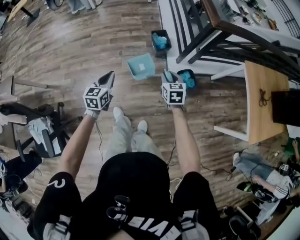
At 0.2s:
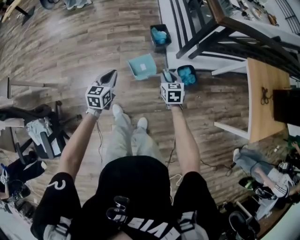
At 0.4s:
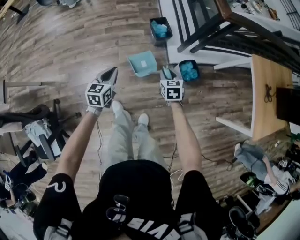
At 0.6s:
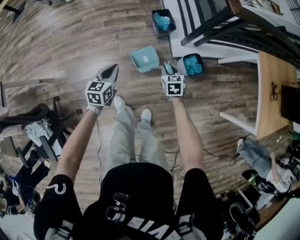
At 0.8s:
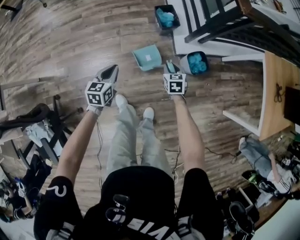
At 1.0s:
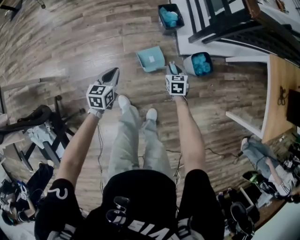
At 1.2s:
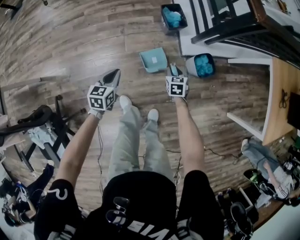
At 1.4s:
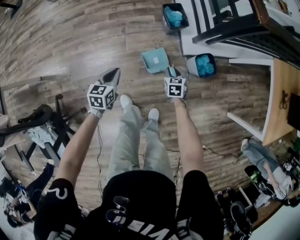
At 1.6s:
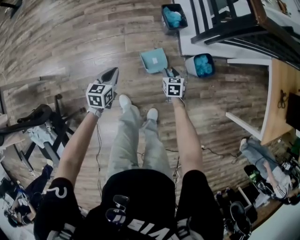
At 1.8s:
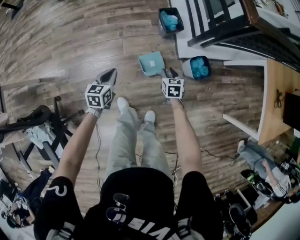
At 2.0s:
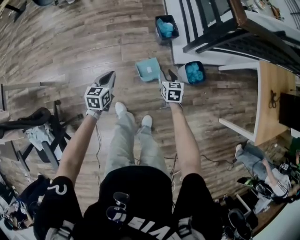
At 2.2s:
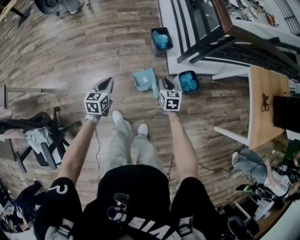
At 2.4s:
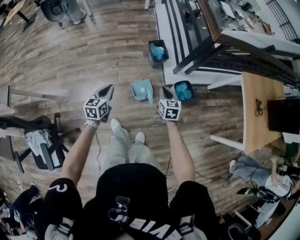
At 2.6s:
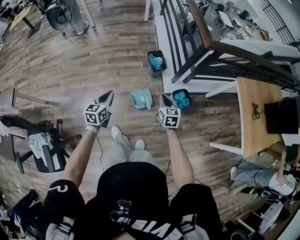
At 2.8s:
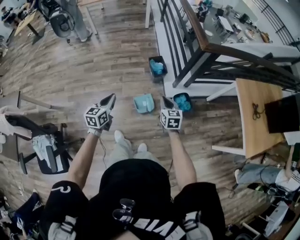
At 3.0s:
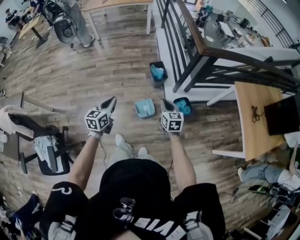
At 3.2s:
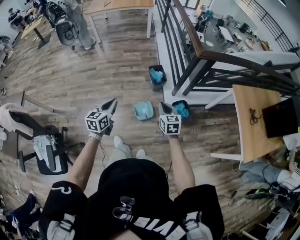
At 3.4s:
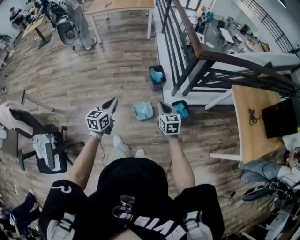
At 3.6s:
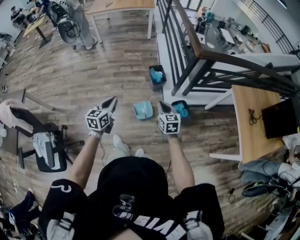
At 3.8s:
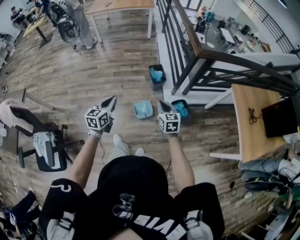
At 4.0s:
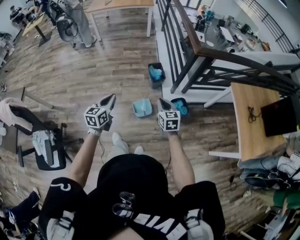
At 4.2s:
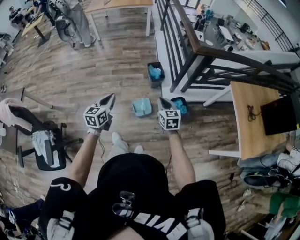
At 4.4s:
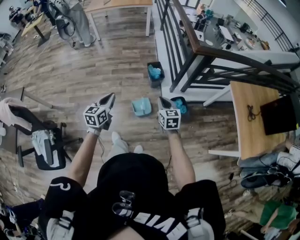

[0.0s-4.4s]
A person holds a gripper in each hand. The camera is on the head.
0.0s to 1.4s: The grippers both shift downward by approximately 25 cm.
1.4s to 3.0s: The grippers both shift upward by approximately 30 cm. The right gripper rotates some 30 degrees, and closes.
3.0s to 4.4s: The right gripper changes place by approximately 5 cm. The left gripper shifts by some 5 cm.

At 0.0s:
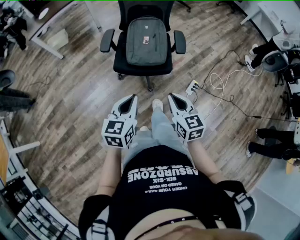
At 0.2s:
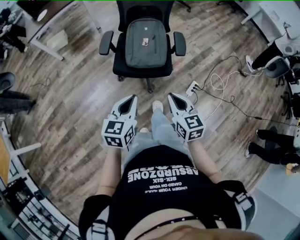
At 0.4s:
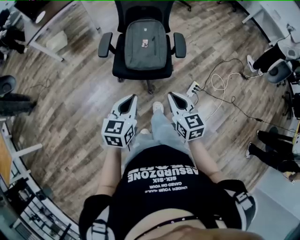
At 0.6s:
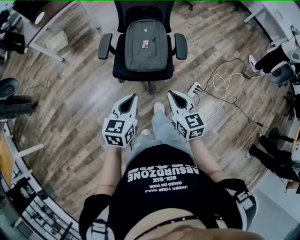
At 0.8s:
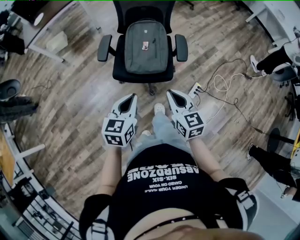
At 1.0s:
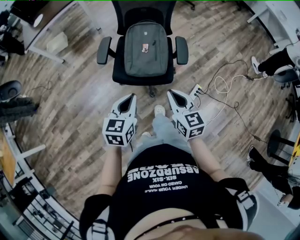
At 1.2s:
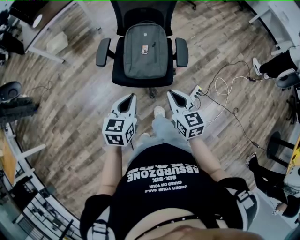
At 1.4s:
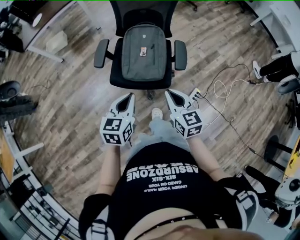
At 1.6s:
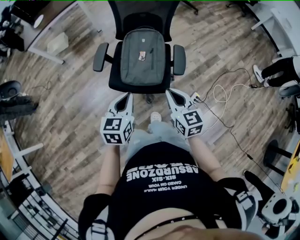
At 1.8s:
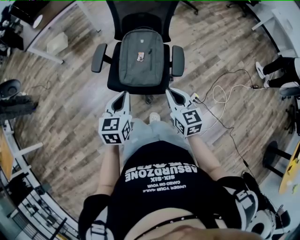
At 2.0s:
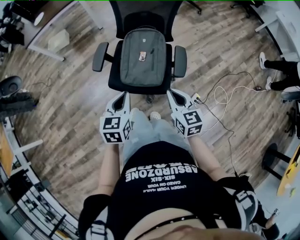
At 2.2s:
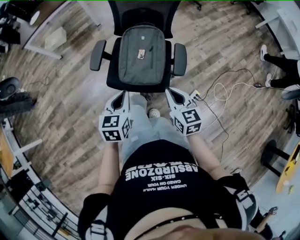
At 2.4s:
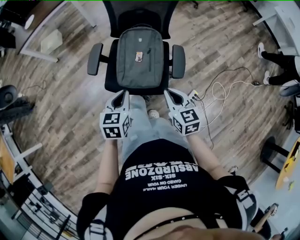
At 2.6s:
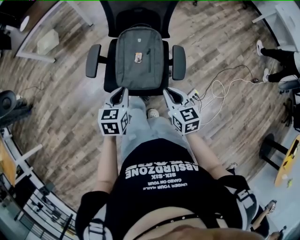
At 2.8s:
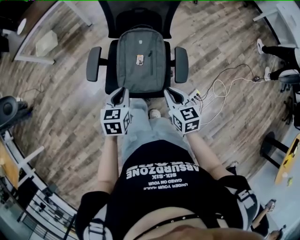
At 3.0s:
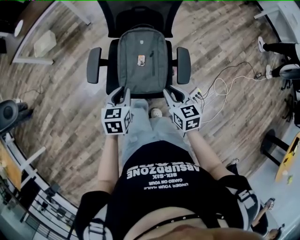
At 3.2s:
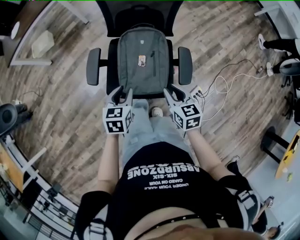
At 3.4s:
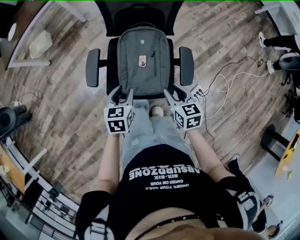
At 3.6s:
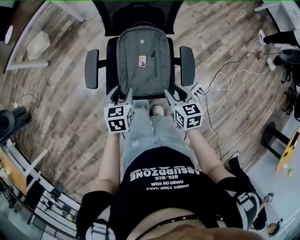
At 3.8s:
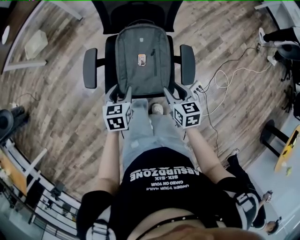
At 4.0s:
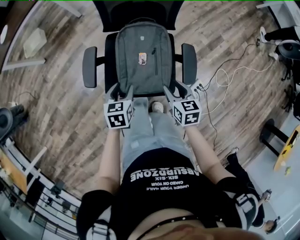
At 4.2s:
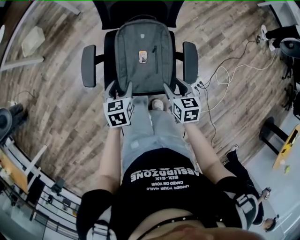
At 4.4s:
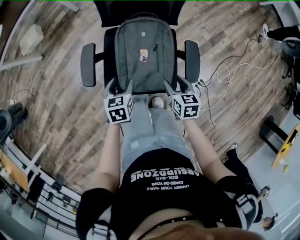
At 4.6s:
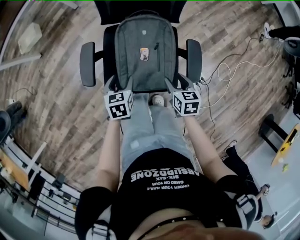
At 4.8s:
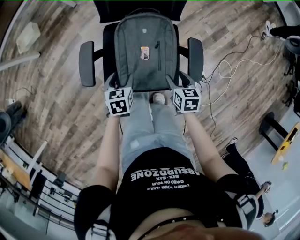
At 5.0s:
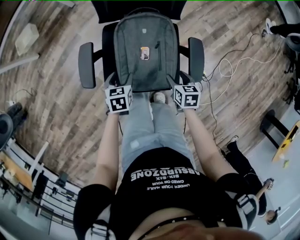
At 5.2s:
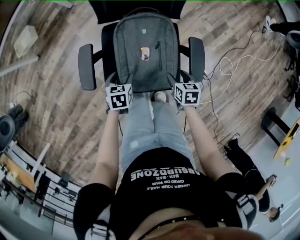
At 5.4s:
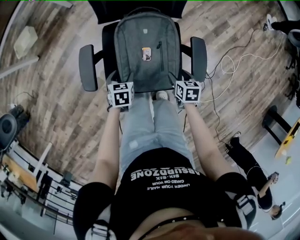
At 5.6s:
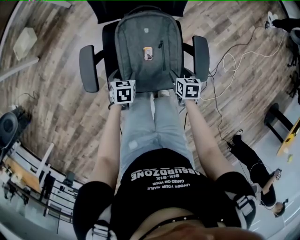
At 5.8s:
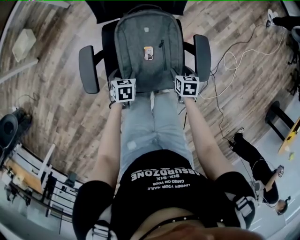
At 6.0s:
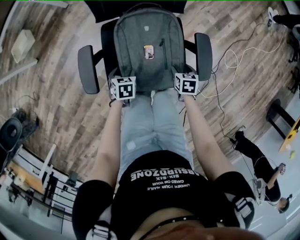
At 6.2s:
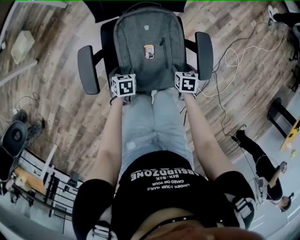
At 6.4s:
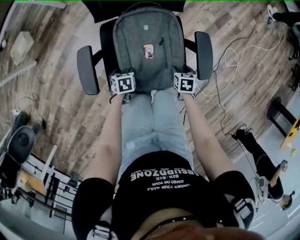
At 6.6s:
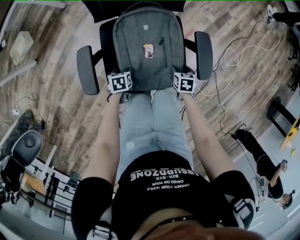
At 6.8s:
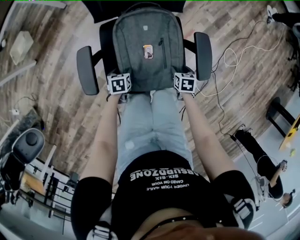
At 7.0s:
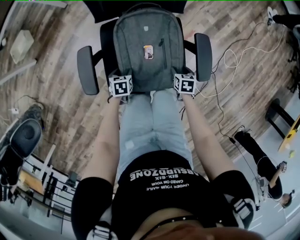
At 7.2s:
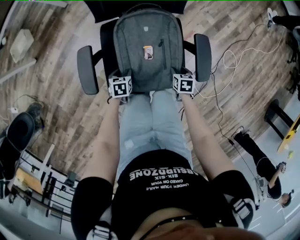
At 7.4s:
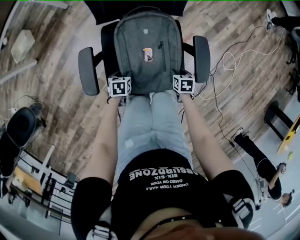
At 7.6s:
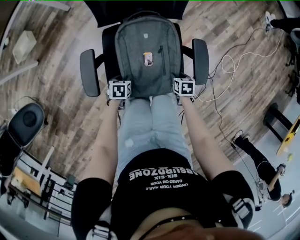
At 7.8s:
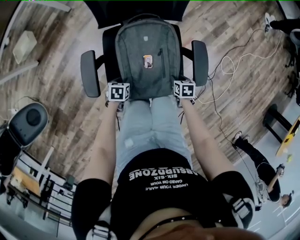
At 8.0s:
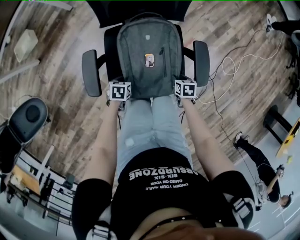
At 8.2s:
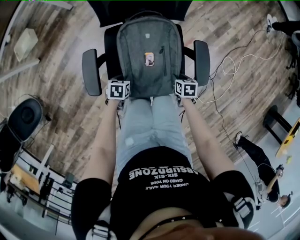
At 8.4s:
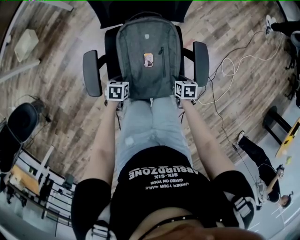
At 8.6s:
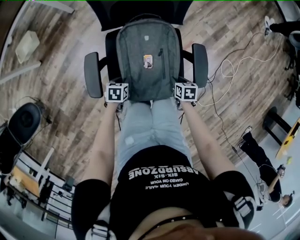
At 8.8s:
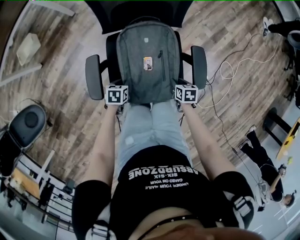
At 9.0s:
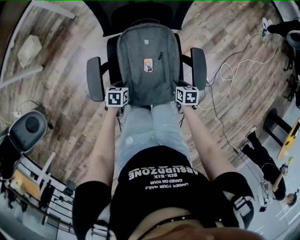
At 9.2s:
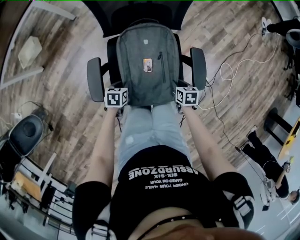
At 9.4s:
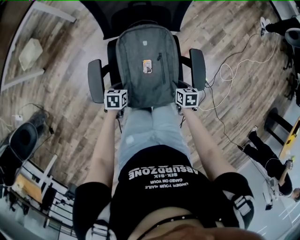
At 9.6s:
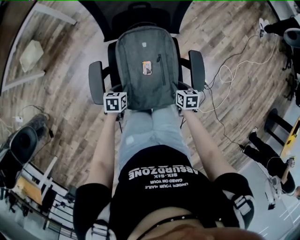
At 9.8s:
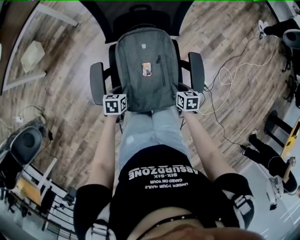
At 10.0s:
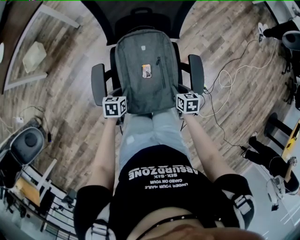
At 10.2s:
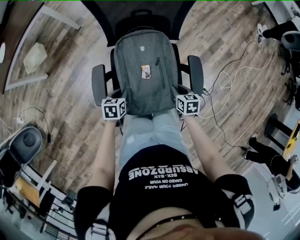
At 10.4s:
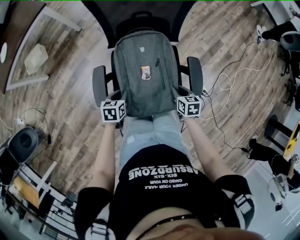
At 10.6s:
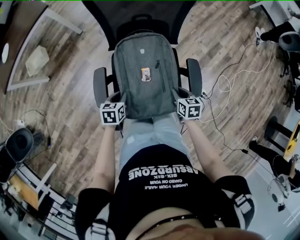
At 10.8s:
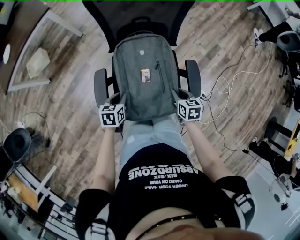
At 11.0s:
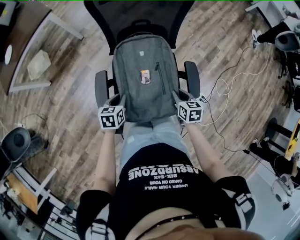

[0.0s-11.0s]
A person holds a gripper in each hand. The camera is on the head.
0.0s to 1.6s: Both grippers travel together forward, approximately 20 cm.
1.6s to 3.2s: The grippers both shift forward and downward by roughly 20 cm. The left gripper opens.
3.2s to 4.8s: The two grippers go approximately 20 cm downward and forward. The right gripper swivels some 20 degrees, and opens up. The left gripper opens.
4.8s to 6.2s: The two grippers go about 15 cm downward.
6.2s to 7.8s: The left gripper closes its fingers. Meanwhile the right gripper closes.
7.8s to 9.4s: Both grippers move upward, about 10 cm.
9.4s to 11.0s: Both grippers travel together upward, approximately 15 cm.

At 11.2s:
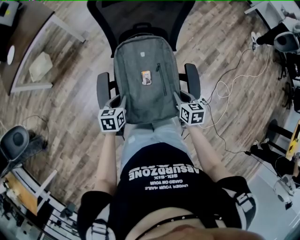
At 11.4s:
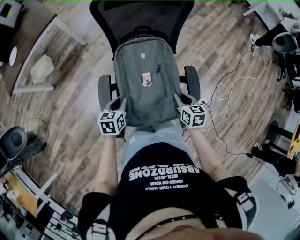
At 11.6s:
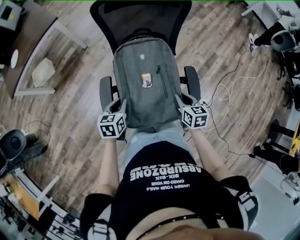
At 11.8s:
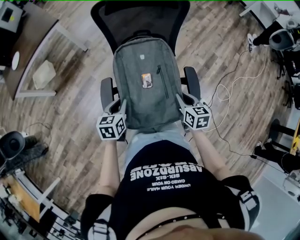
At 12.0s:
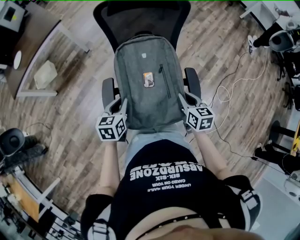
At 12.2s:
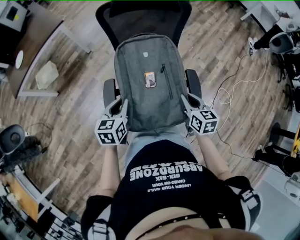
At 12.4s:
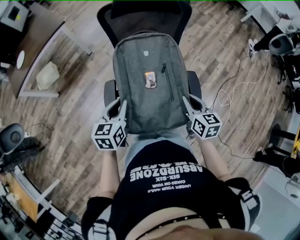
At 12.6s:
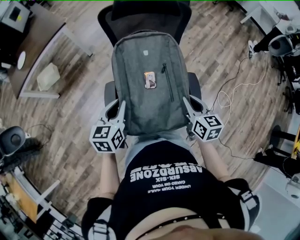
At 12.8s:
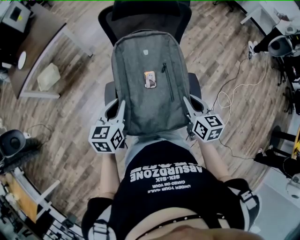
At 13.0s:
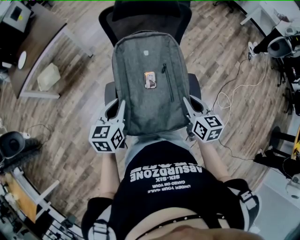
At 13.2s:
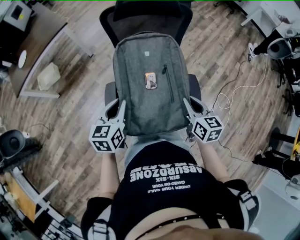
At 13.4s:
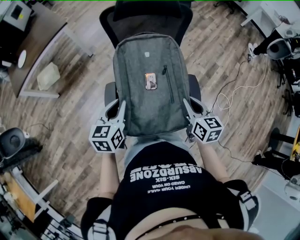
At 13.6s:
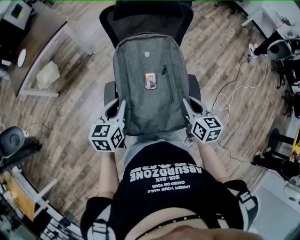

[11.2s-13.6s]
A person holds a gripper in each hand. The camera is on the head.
11.2s to 12.4s: The two grippers go about 15 cm upward.
12.4s to 13.6s: There are only small adjustments of the grippers.

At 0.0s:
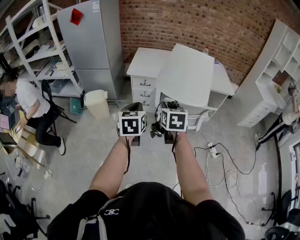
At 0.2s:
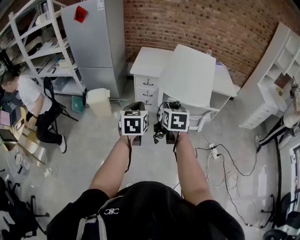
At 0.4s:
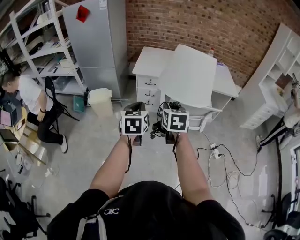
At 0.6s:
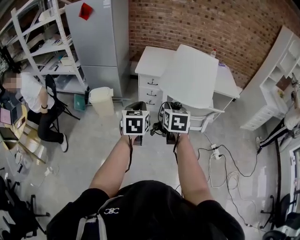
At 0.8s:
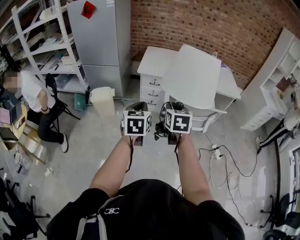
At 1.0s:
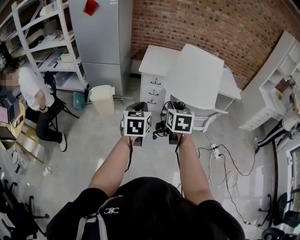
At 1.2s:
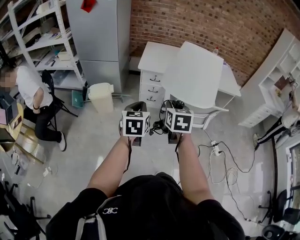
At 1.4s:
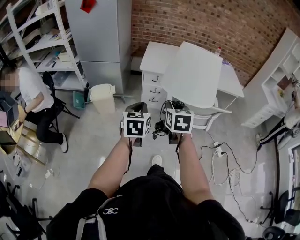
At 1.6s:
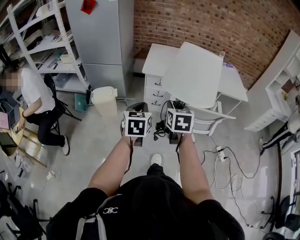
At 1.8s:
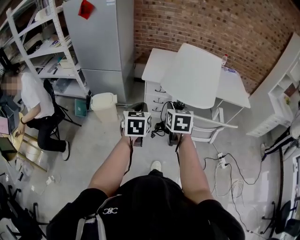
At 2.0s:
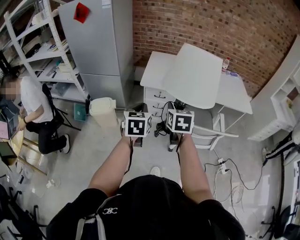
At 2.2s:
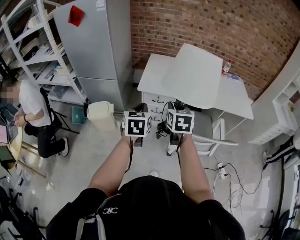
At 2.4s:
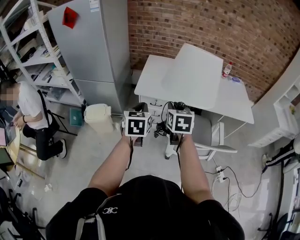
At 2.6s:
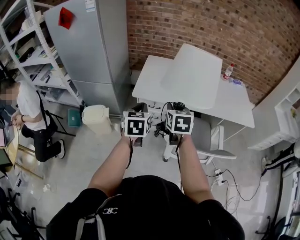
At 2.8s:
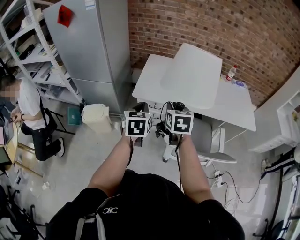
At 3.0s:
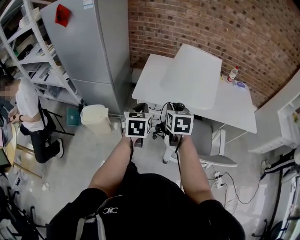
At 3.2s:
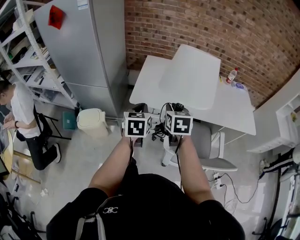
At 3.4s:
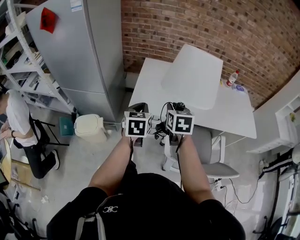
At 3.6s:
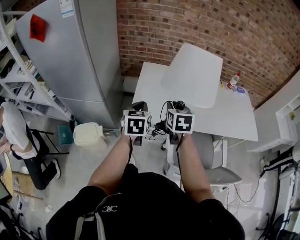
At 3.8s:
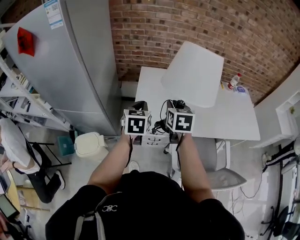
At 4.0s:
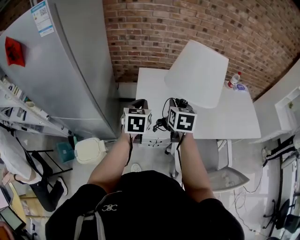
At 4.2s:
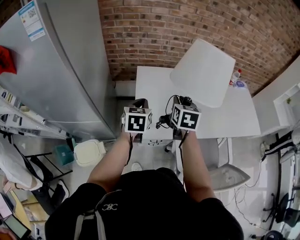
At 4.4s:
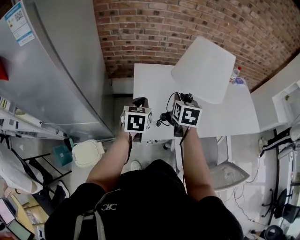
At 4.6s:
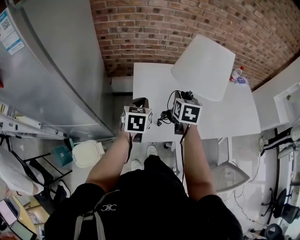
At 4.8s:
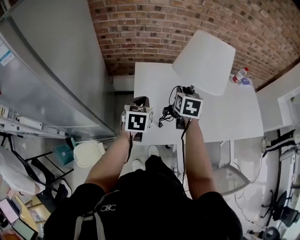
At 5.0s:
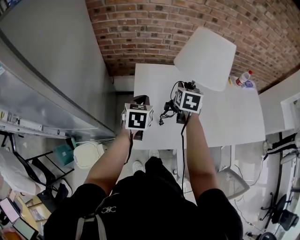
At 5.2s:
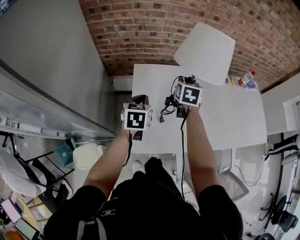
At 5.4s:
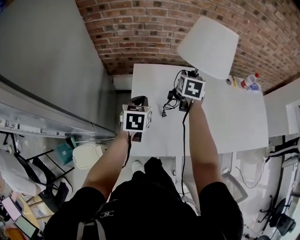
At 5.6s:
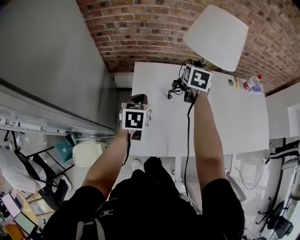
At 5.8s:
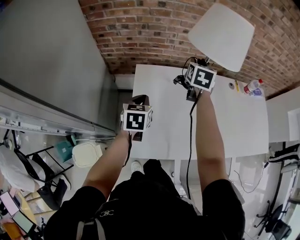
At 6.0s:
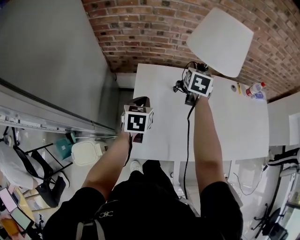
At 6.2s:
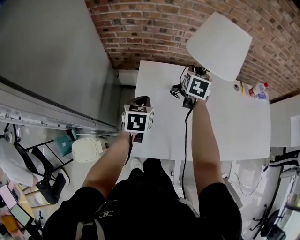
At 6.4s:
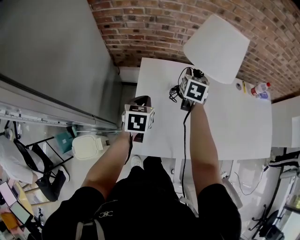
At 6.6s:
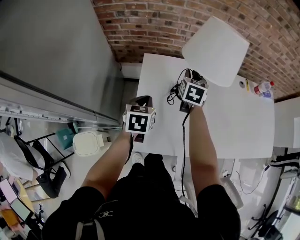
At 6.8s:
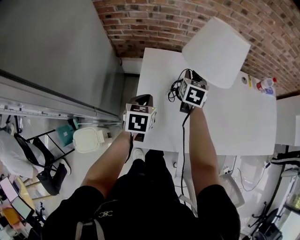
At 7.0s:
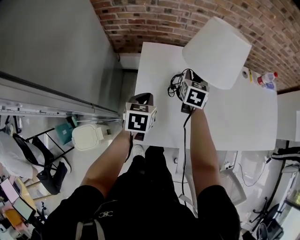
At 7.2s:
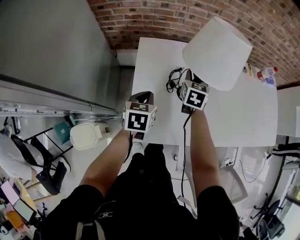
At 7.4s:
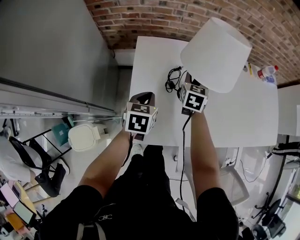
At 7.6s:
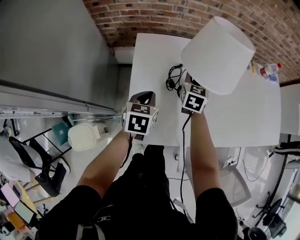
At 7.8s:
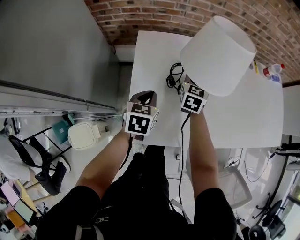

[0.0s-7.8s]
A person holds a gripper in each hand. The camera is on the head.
0.0s to 1.6s: Both grippers move to the left and forward, some 15 cm.
1.6s to 3.2s: The grippers both shift forward by roughly 35 cm.
3.2s to 4.6s: The grippers both shift forward by roughly 30 cm. The right gripper changes its angle by roughly 20 degrees.
4.6s to 6.2s: The right gripper goes some 25 cm forward. The left gripper heads forward and downward, covering approximately 15 cm.
6.2s to 7.8s: The left gripper travels downward by approximately 10 cm. The right gripper travels downward and backward by approximately 20 cm.
